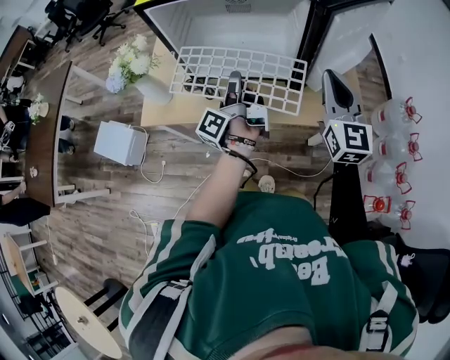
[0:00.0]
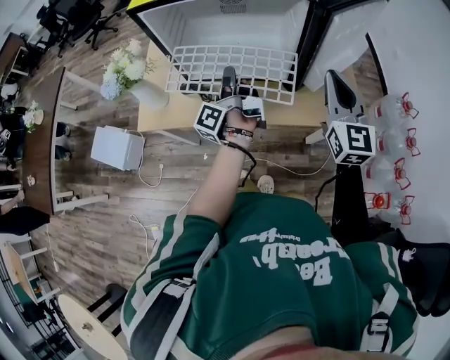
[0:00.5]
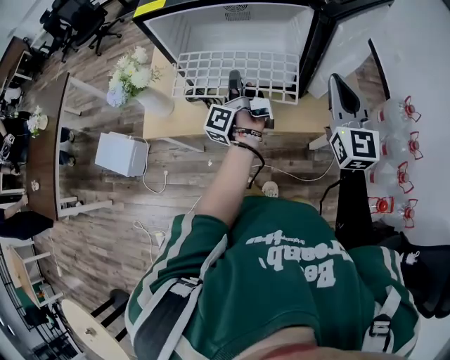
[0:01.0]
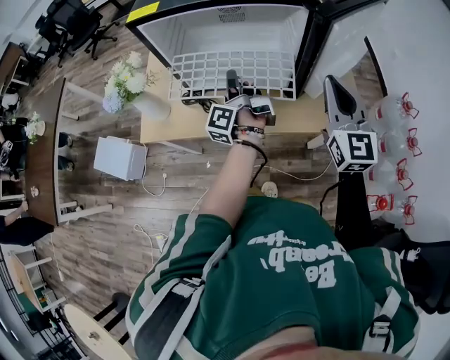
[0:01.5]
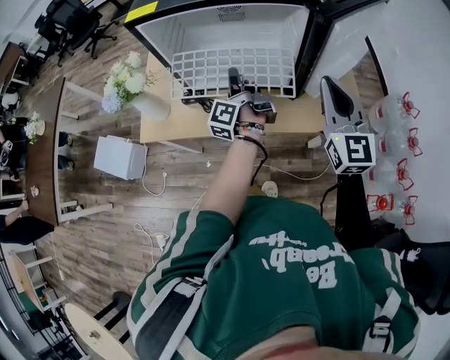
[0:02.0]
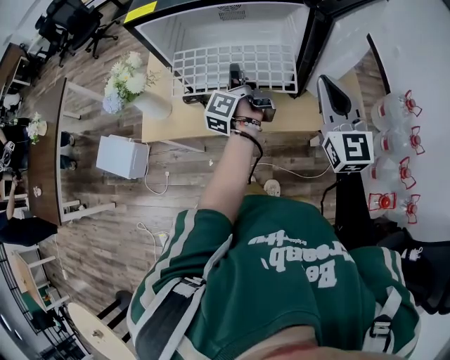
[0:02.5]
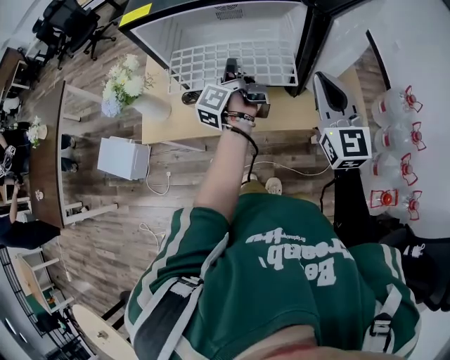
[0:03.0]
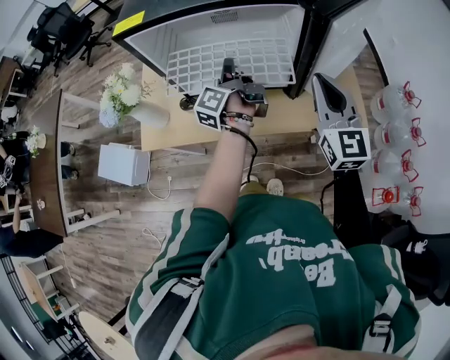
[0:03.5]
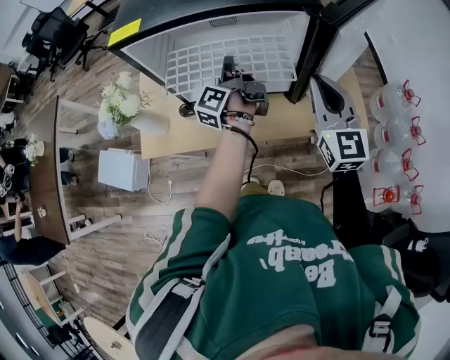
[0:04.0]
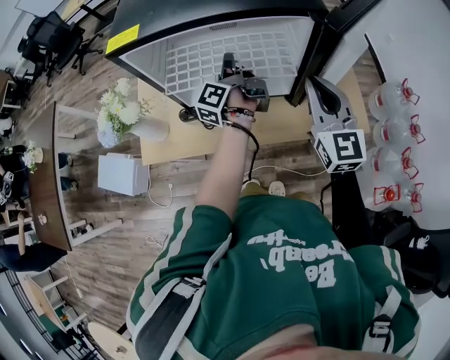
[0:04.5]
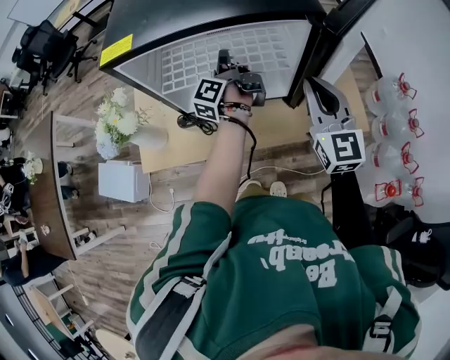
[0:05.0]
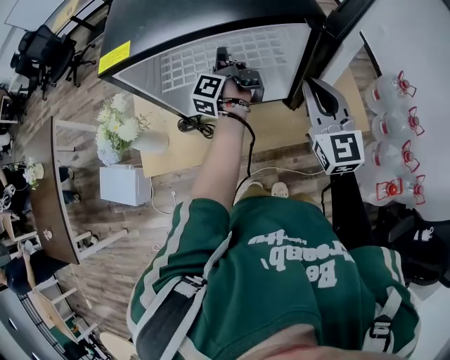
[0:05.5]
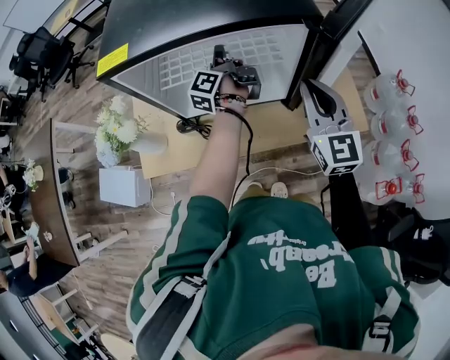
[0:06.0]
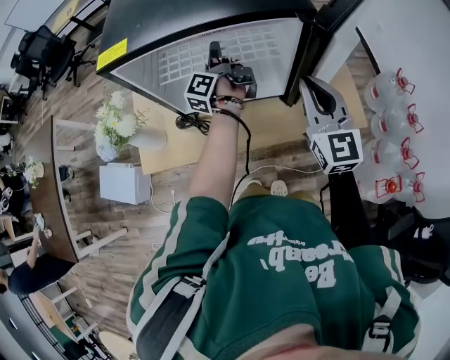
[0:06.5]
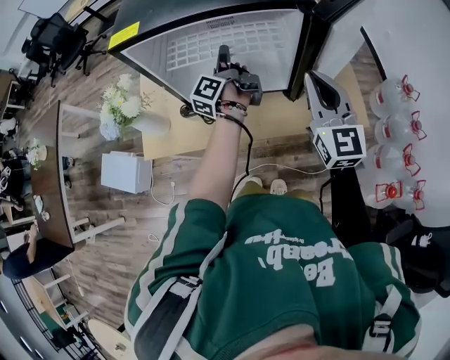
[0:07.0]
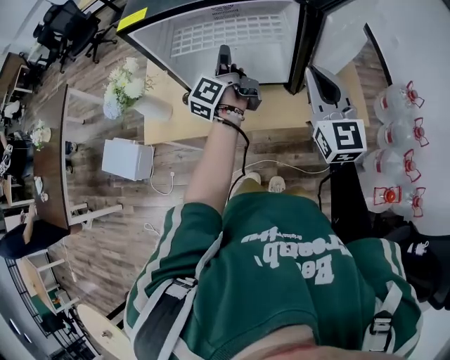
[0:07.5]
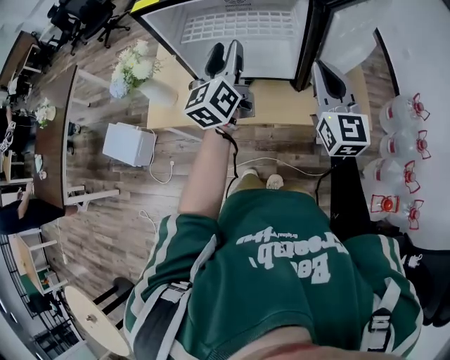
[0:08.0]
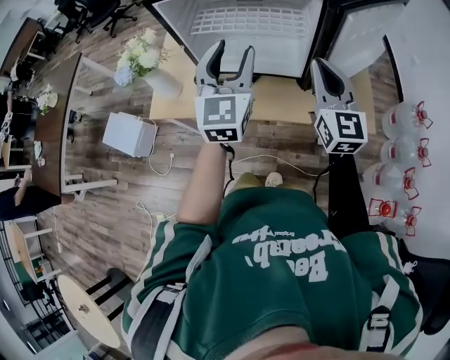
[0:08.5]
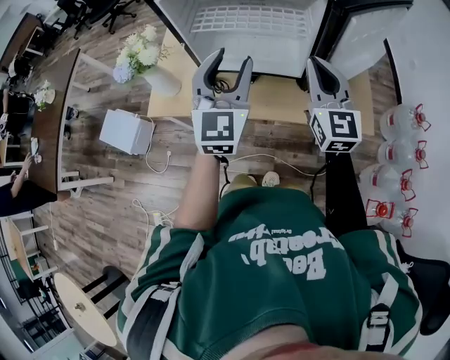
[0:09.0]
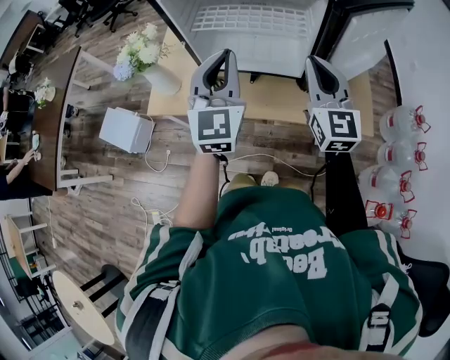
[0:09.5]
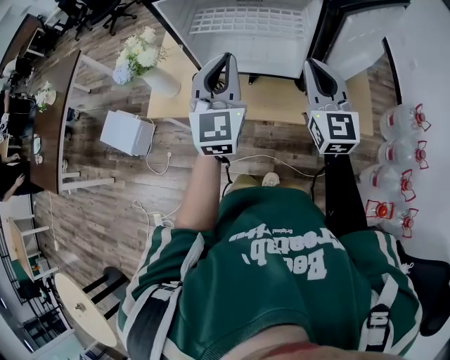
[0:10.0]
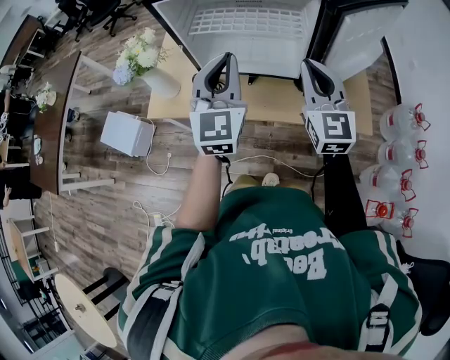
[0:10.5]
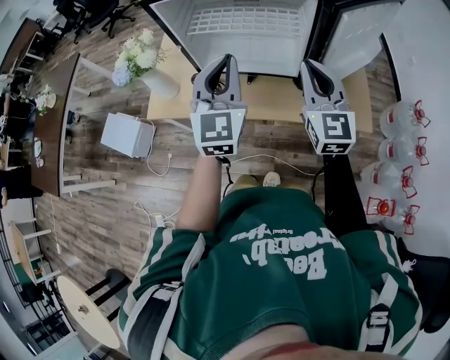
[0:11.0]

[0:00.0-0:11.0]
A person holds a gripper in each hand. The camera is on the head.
0:00.0 to 0:02.0: The left gripper moves forward, roughly 10 cm.
0:02.0 to 0:03.5: There are only small adjustments of the grippers.
0:03.5 to 0:05.5: The left gripper travels forward by some 10 cm. Meanwhile the right gripper heads forward, covering roughly 5 cm.
0:05.5 to 0:07.5: The right gripper shifts about 5 cm backward. The left gripper travels backward by approximately 10 cm, and opens.
0:07.5 to 0:09.0: The left gripper shifts roughly 20 cm backward and upward, and twists about 80 degrees clockwise, seen from behind.
0:09.0 to 0:11.0: The left gripper closes its fingers.

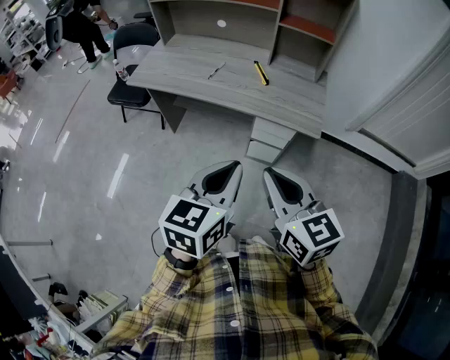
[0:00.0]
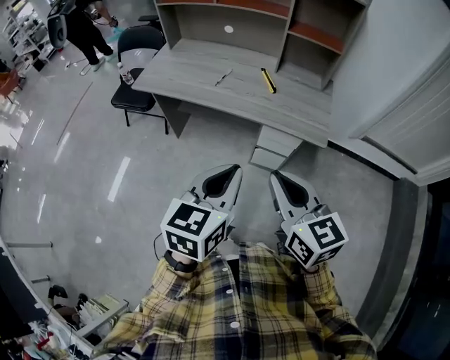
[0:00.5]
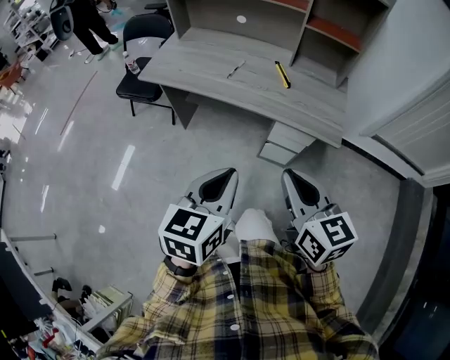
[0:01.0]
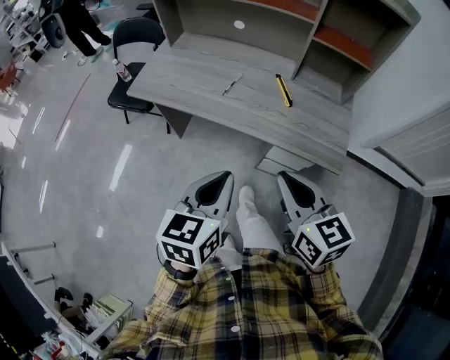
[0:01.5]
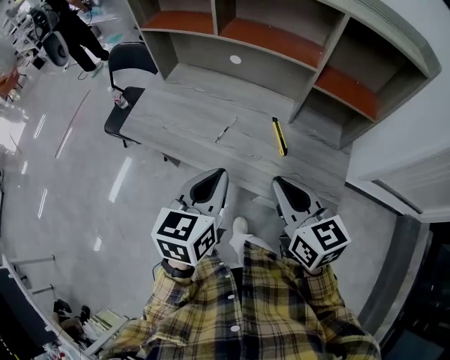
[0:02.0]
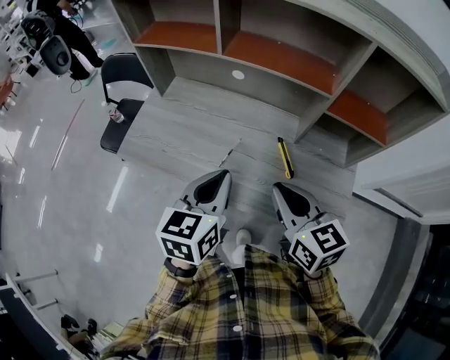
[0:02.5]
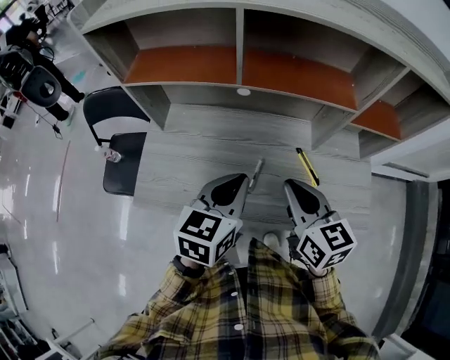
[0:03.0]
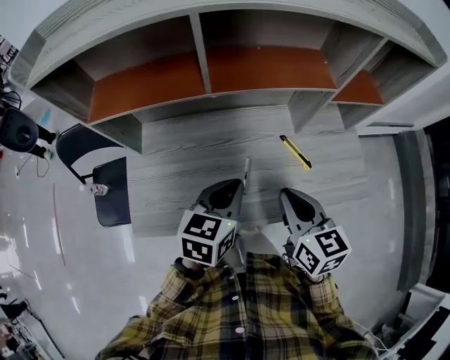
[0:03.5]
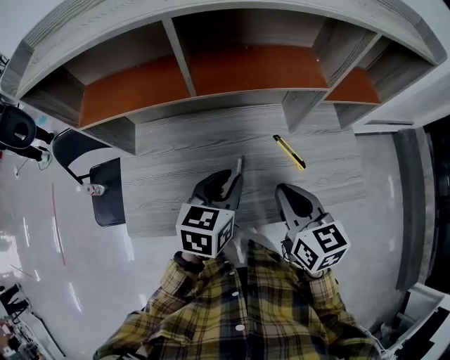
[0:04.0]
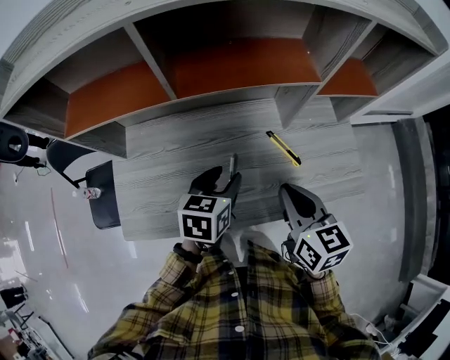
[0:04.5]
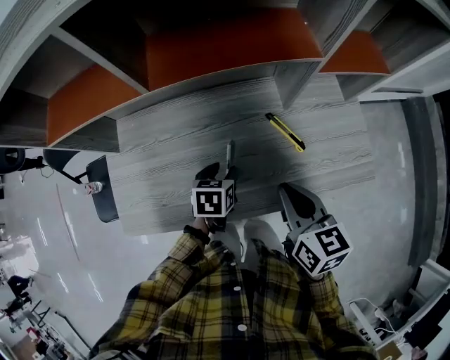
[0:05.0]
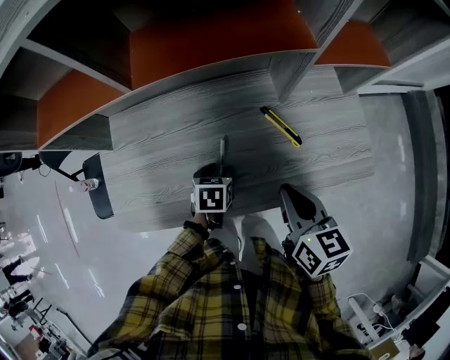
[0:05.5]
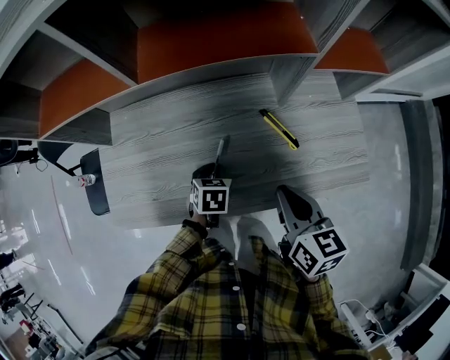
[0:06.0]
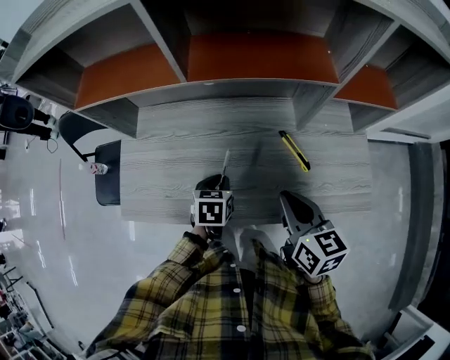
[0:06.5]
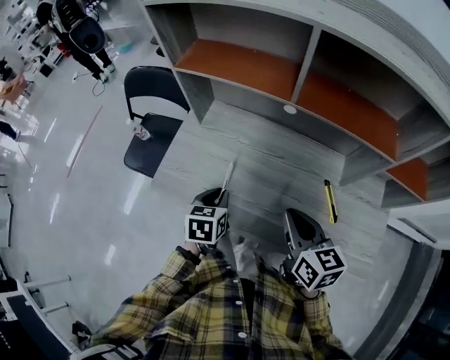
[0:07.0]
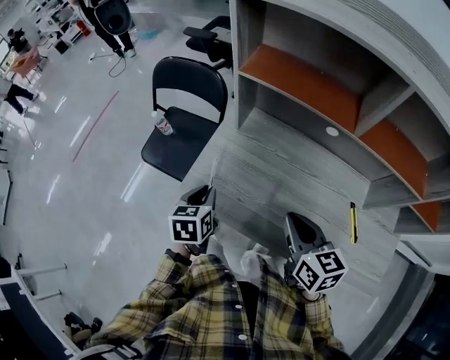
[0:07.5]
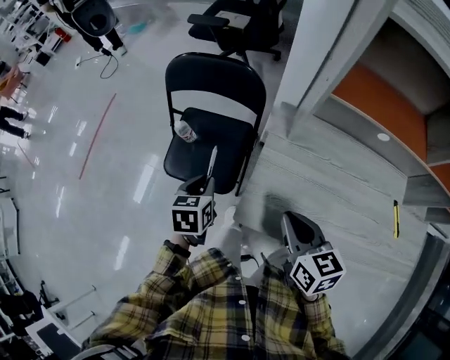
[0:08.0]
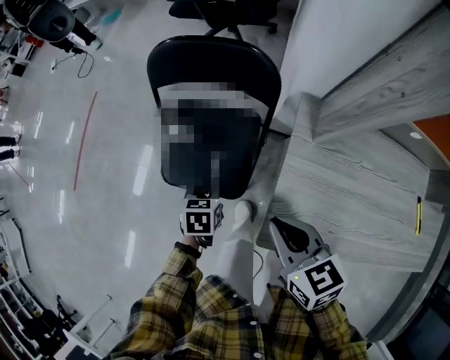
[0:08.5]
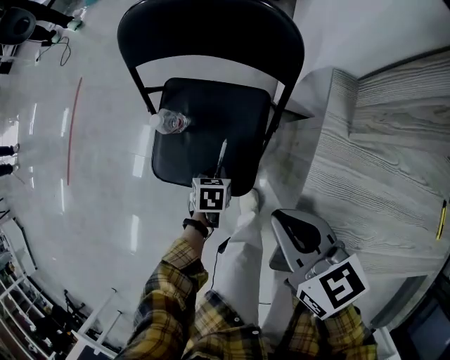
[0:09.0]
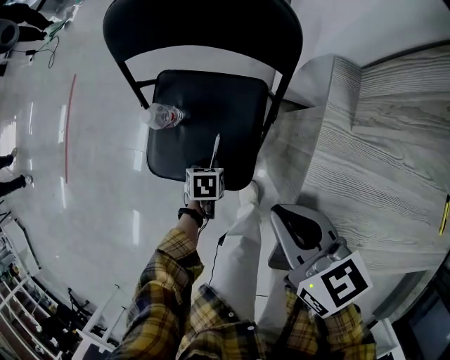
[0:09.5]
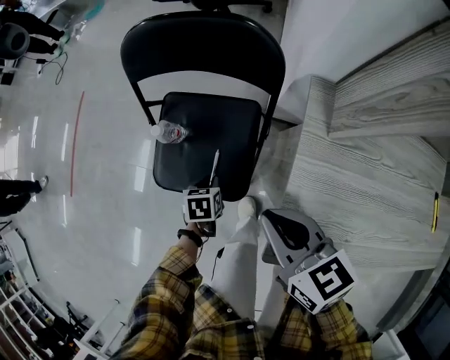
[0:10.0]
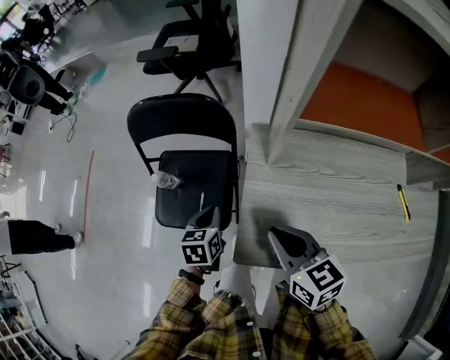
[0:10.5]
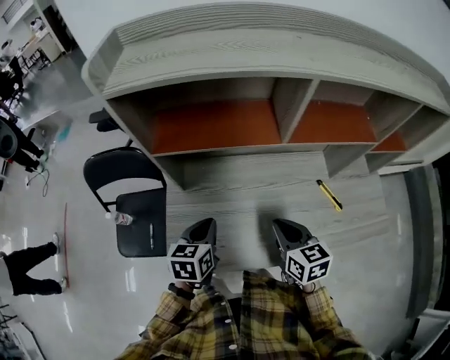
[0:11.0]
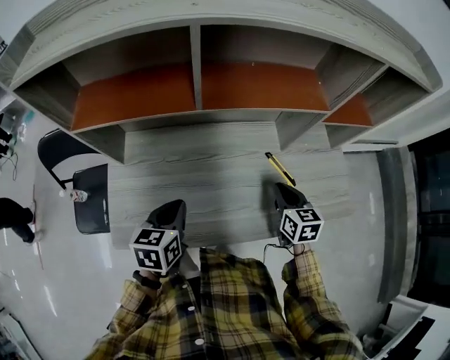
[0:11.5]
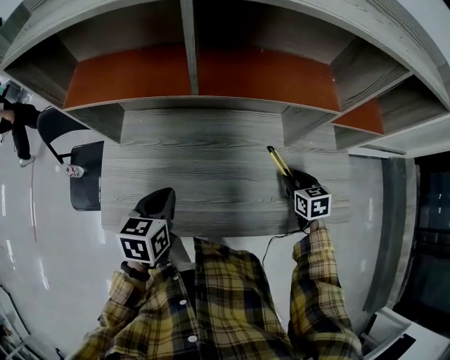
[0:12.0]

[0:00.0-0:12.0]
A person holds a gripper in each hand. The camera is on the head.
0:00.0 to 0:02.0: The two grippers go about 35 cm forward.
0:02.0 to 0:04.0: The right gripper changes place by roughly 20 cm, and changes its angle by approximately 30 degrees. Meanwhile the left gripper changes place by roughly 25 cm, and rotates roughly 30 degrees.
0:04.0 to 0:06.0: The right gripper is displaced downward and to the right by some 10 cm. The left gripper travels downward by some 25 cm, tips its fingers downward by roughly 30 degrees, and opens and closes again.
0:06.0 to 0:08.0: Both grippers are carried approximately 50 cm. The right gripper turns by some 30 degrees. Meanwhile the left gripper changes its angle by about 40 degrees.
0:08.0 to 0:10.0: The right gripper moves about 20 cm. The left gripper goes roughly 30 cm downward.
0:10.0 to 0:12.0: The pair of grippers is taken approximately 60 cm. The right gripper turns by about 30 degrees, and opens; the left gripper rotates about 30 degrees.

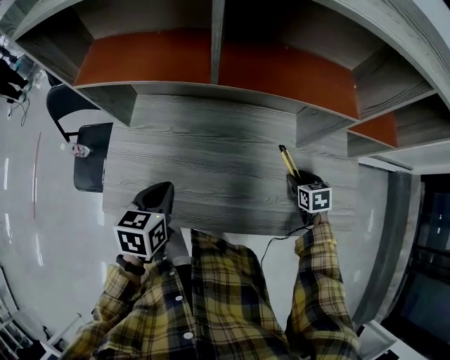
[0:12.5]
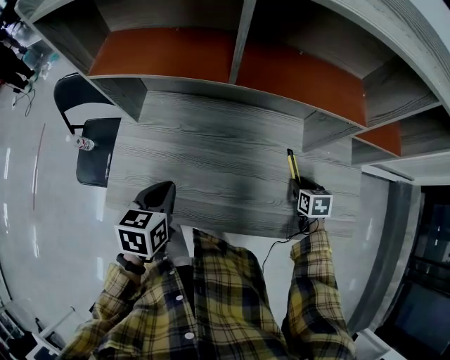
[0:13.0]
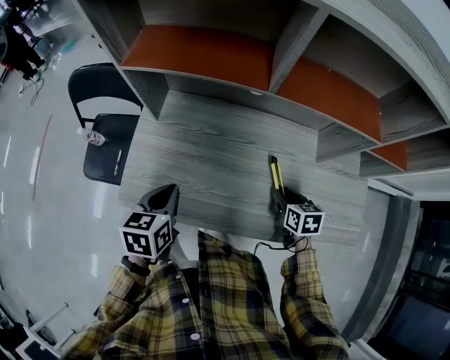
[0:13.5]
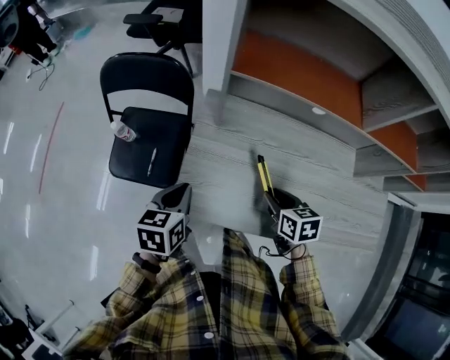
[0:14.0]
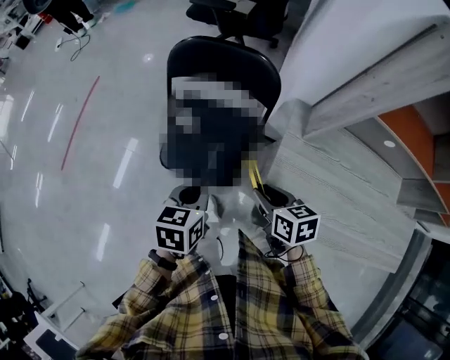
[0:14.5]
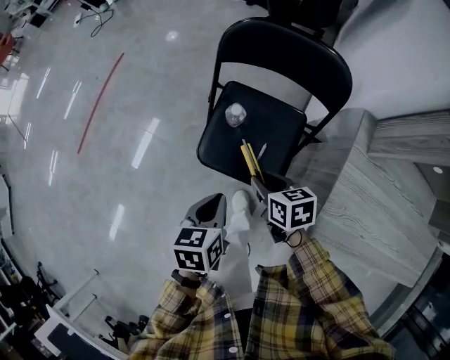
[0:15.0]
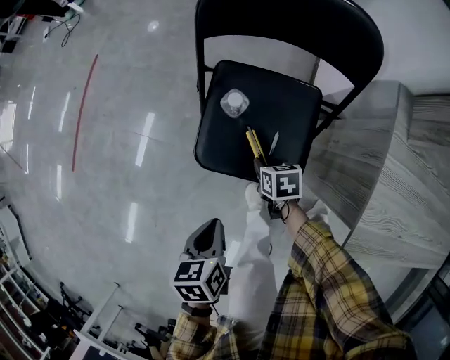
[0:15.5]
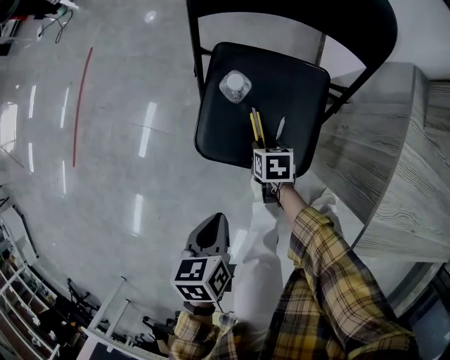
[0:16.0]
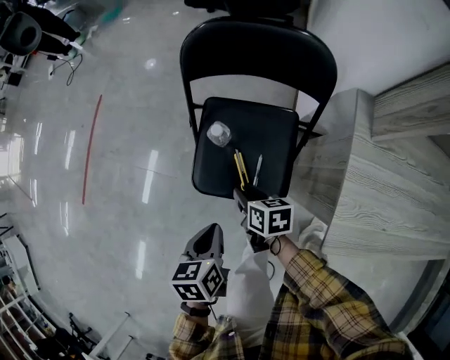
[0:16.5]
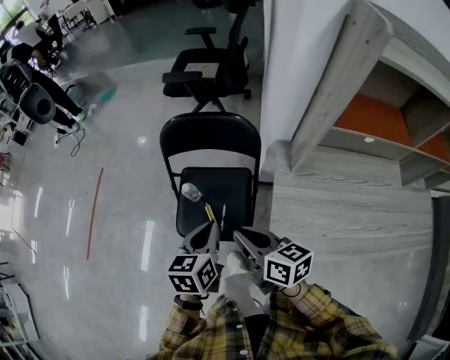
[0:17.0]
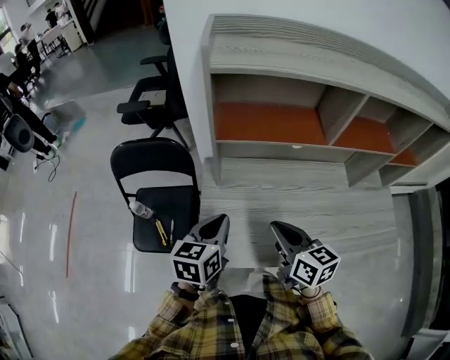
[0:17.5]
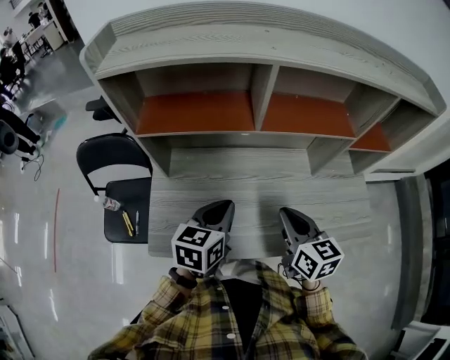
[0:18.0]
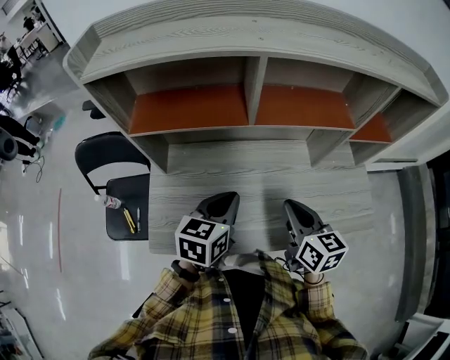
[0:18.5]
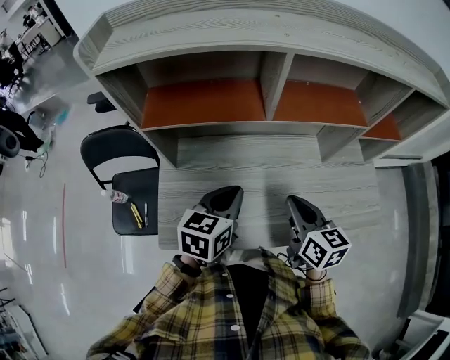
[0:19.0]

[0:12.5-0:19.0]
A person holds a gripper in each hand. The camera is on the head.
0:12.5 to 0:14.5: The two grippers travel together, some 60 cm. The right gripper rotates approximately 30 degrees.
0:14.5 to 0:17.0: The left gripper moves roughly 20 cm downward and comes back; the right gripper moves to the left, approximately 10 cm, reaches some 35 cm downward, then returns, changes its angle by approximately 30 degrees, and closes.
0:17.0 to 0:19.0: The pair of grippers is taken roughly 50 cm. The left gripper turns by roughly 30 degrees. The right gripper turns by approximately 30 degrees.
